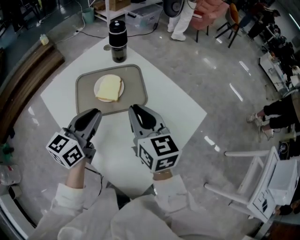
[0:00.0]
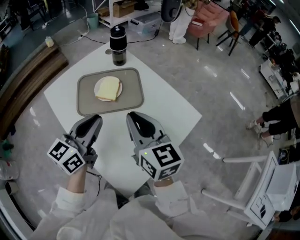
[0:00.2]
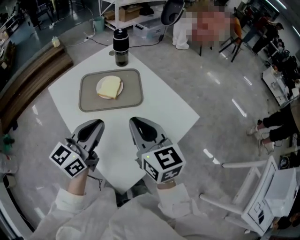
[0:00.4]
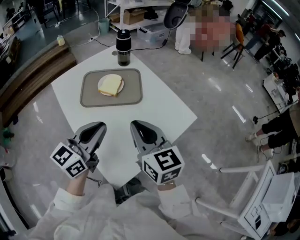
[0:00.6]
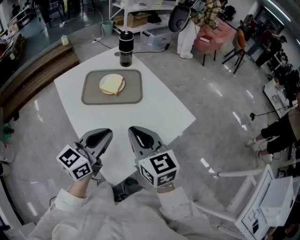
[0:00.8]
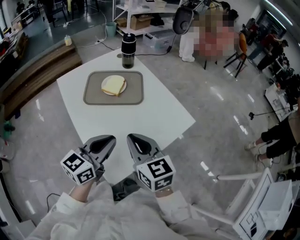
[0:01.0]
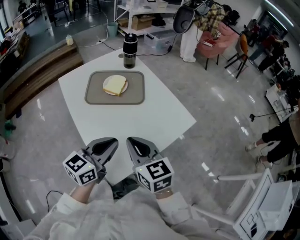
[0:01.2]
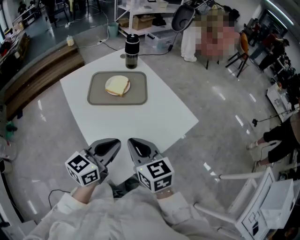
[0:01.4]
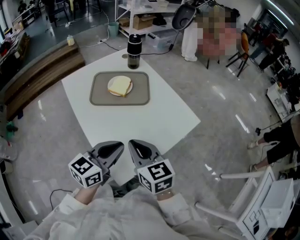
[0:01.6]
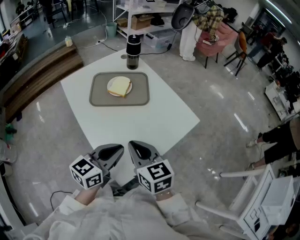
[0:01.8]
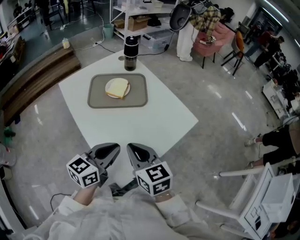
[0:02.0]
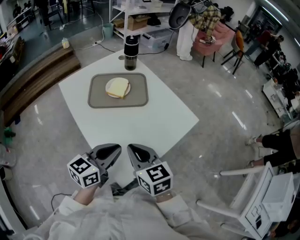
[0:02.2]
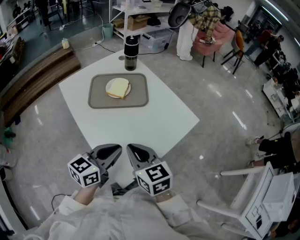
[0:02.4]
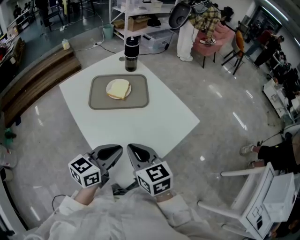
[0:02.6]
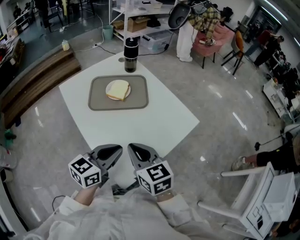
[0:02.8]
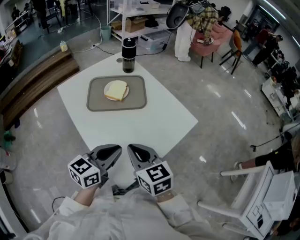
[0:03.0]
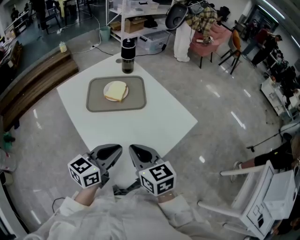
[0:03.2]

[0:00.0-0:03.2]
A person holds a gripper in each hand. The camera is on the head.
0.0 to 1.6 s: The right gripper travels backward by roughly 20 cm. Meanwhile the left gripper goes about 25 cm backward and to the right.
1.6 to 3.2 s: The grippers move only a little.

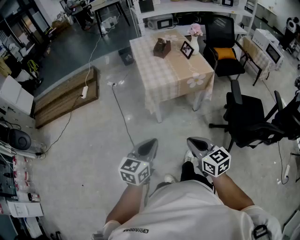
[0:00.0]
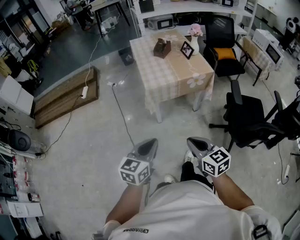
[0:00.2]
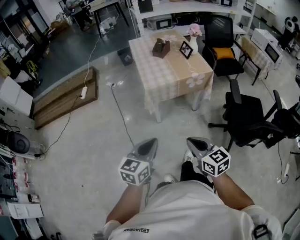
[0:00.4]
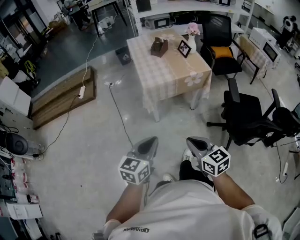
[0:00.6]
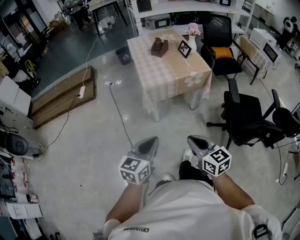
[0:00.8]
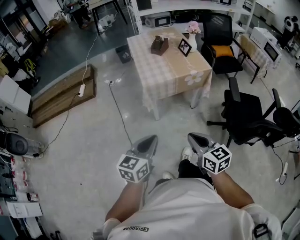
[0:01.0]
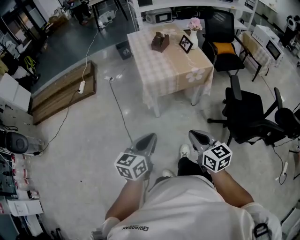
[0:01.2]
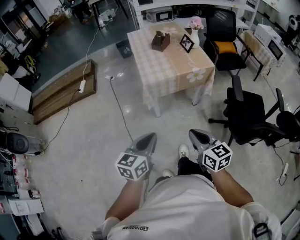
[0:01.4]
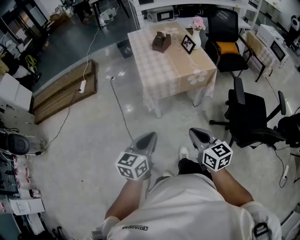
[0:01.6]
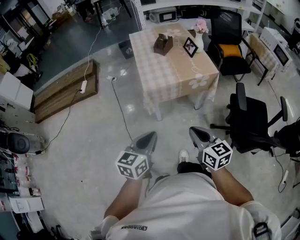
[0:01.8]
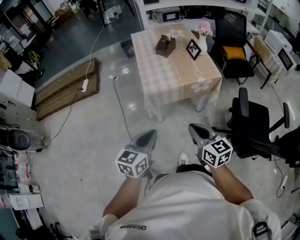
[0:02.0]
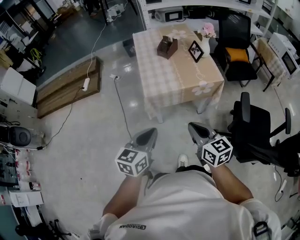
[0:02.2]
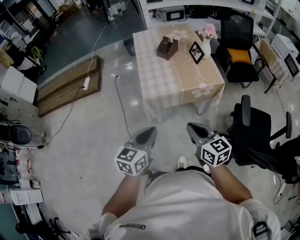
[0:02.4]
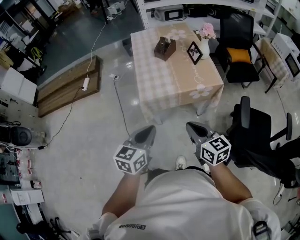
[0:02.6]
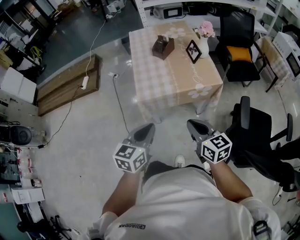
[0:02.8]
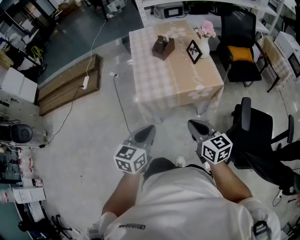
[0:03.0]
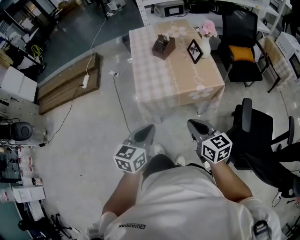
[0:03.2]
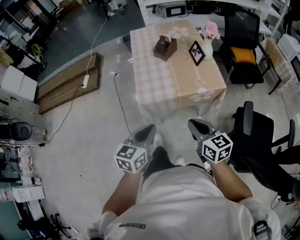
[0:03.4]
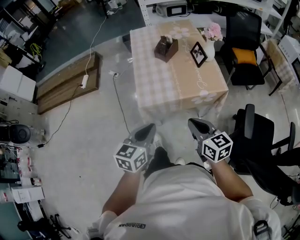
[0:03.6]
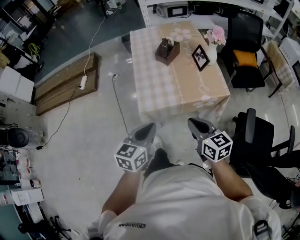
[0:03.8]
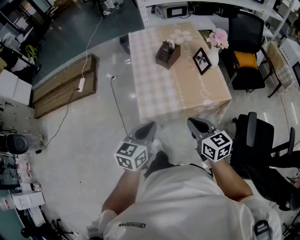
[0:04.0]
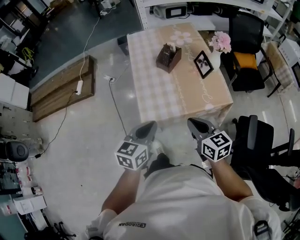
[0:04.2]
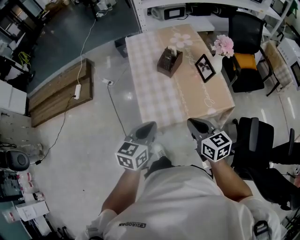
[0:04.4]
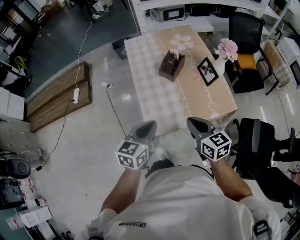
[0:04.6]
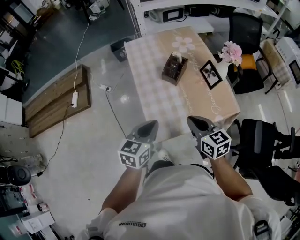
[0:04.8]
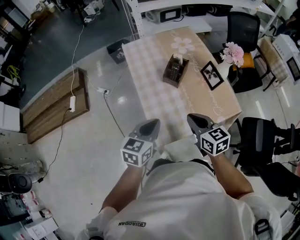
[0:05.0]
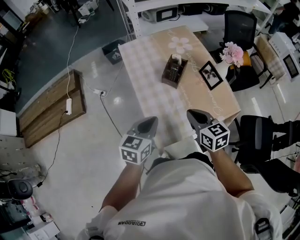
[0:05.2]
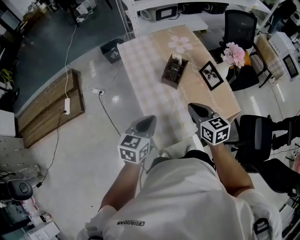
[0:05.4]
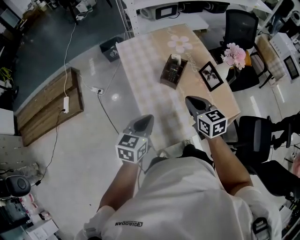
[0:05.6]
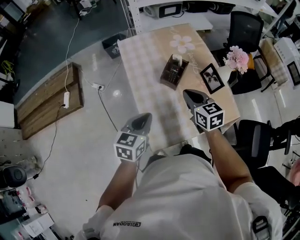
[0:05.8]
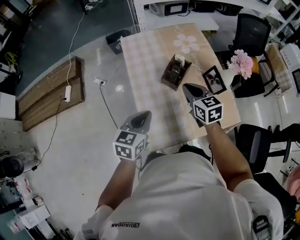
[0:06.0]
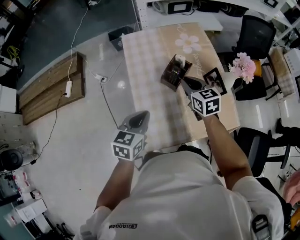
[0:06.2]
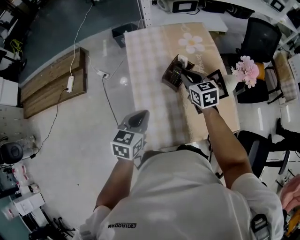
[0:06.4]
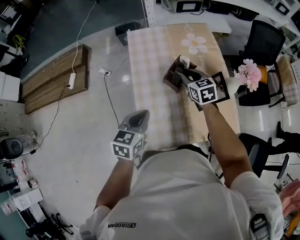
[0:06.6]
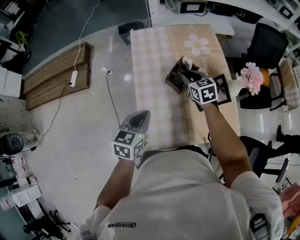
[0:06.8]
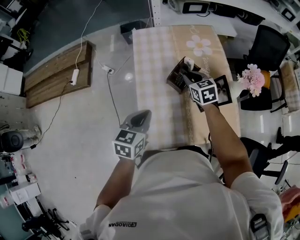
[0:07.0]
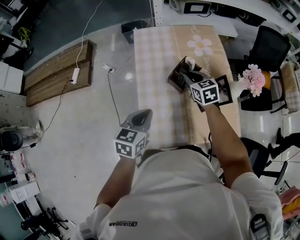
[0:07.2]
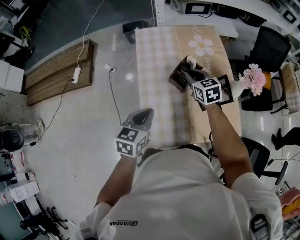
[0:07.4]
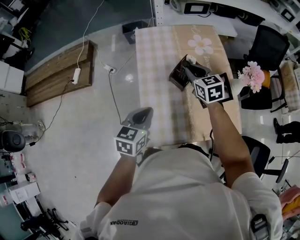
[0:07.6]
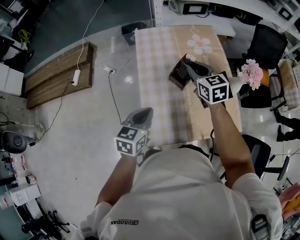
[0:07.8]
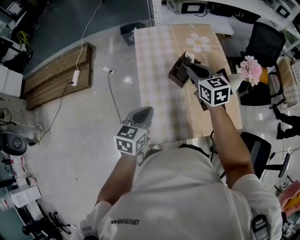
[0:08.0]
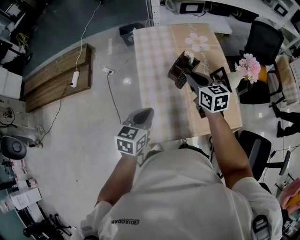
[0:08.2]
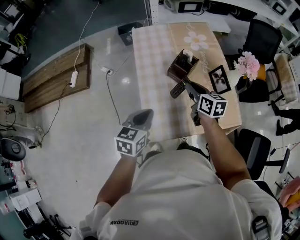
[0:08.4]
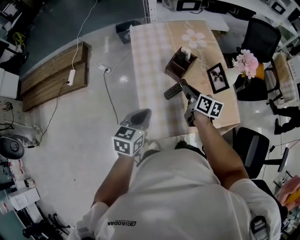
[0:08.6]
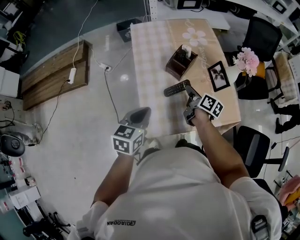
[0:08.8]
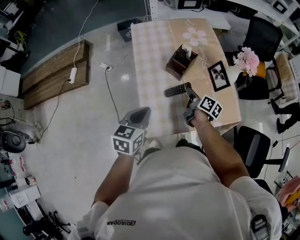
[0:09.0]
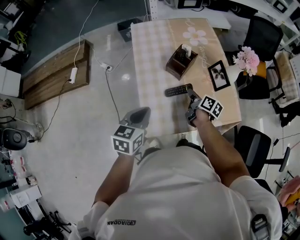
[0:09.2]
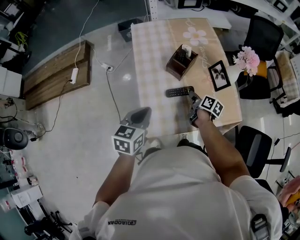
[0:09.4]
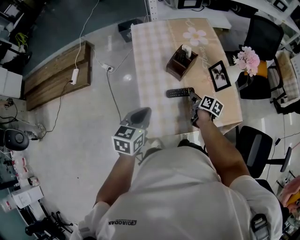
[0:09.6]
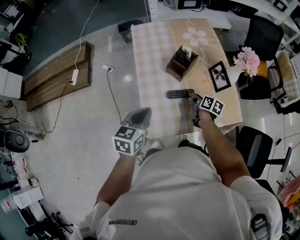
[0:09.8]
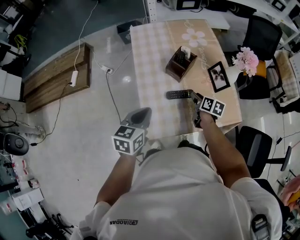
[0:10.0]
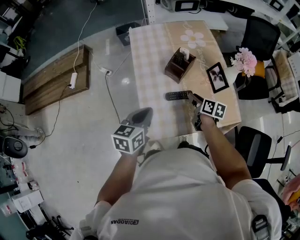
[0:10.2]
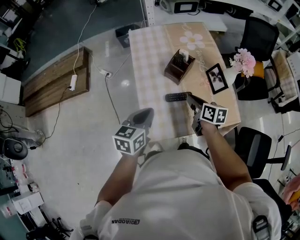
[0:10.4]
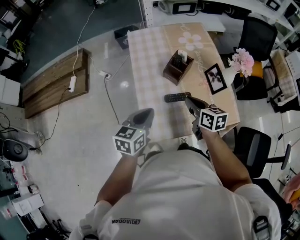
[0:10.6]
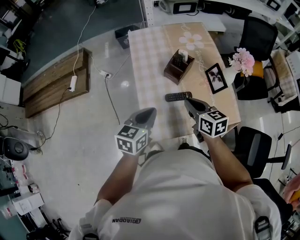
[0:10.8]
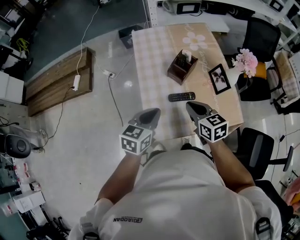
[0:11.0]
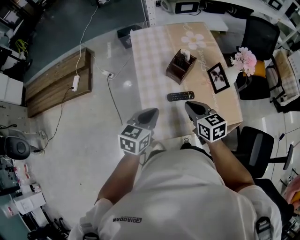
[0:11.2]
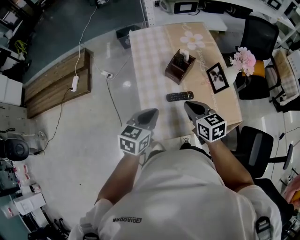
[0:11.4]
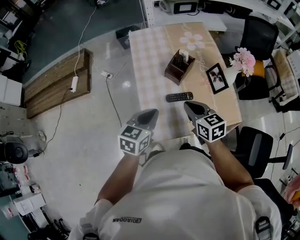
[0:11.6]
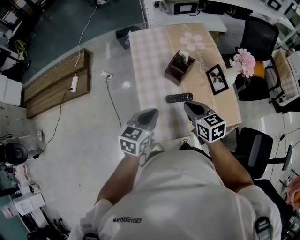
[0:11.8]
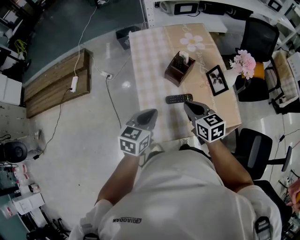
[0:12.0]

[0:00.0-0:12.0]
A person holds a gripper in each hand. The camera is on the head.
0.0 to 1.6 s: The two grippers go roughly 5 cm forward.
1.6 to 3.0 s: The right gripper is displaced forward by some 20 cm; the left gripper moves forward and to the right, approximately 20 cm.
3.0 to 4.4 s: The two grippers go about 20 cm forward.
4.4 to 6.0 s: The right gripper shifts approximately 30 cm forward. Meanwhile the left gripper heads forward, covering approximately 20 cm.
6.0 to 7.6 s: The right gripper is displaced forward by some 10 cm.
7.6 to 9.0 s: The right gripper heads downward and backward, covering about 20 cm, and rotates around the line of its fingers by approximately 70 degrees, clockwise from behind, while the left gripper travels backward by approximately 5 cm.
9.0 to 10.4 s: The right gripper shifts approximately 5 cm upward, and turns by some 30 degrees.
10.4 to 12.0 s: The right gripper shifts some 5 cm upward, and turns by roughly 30 degrees.

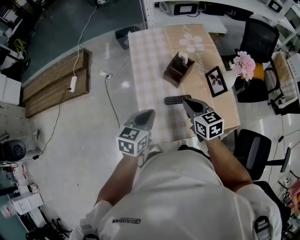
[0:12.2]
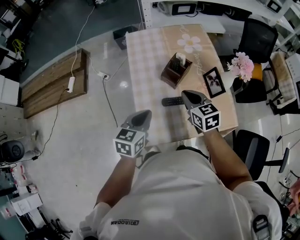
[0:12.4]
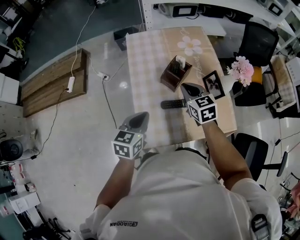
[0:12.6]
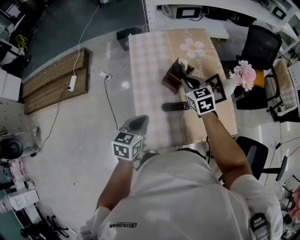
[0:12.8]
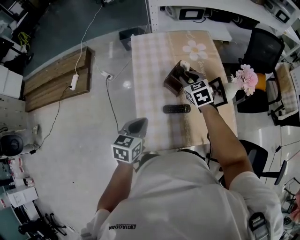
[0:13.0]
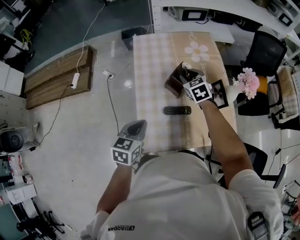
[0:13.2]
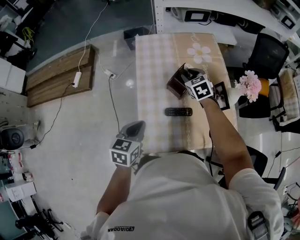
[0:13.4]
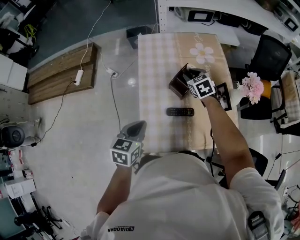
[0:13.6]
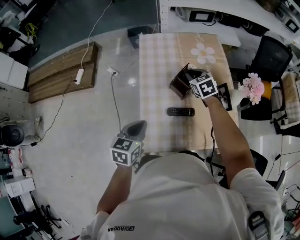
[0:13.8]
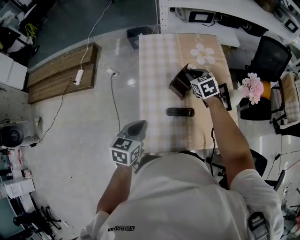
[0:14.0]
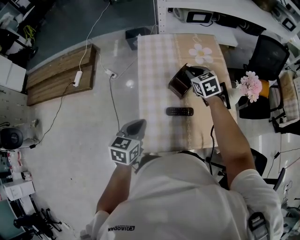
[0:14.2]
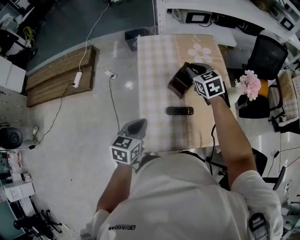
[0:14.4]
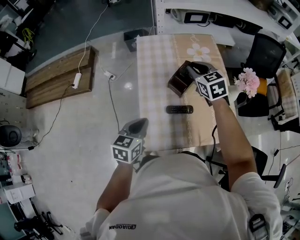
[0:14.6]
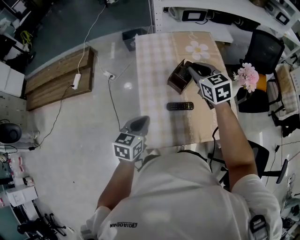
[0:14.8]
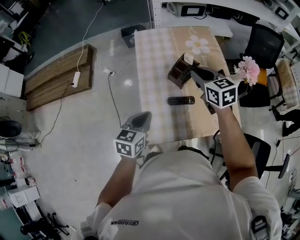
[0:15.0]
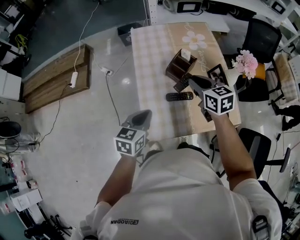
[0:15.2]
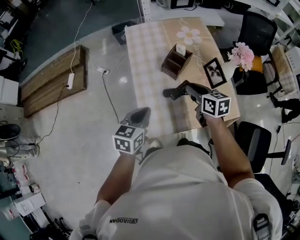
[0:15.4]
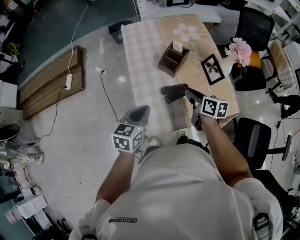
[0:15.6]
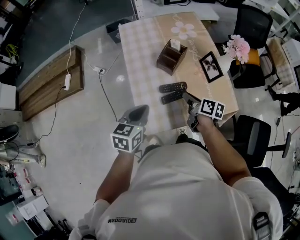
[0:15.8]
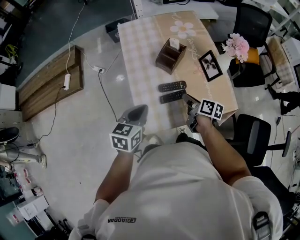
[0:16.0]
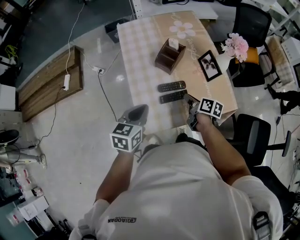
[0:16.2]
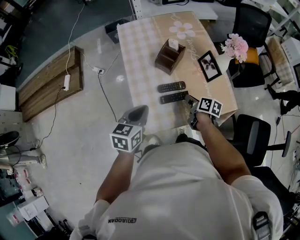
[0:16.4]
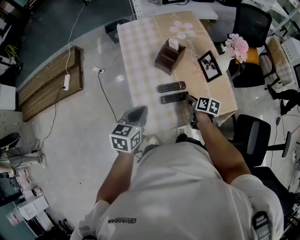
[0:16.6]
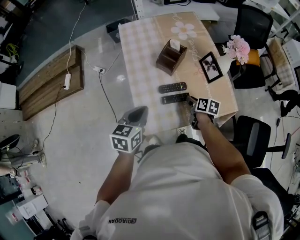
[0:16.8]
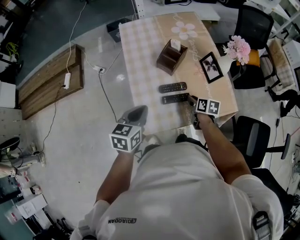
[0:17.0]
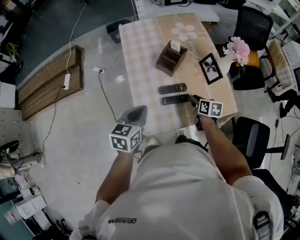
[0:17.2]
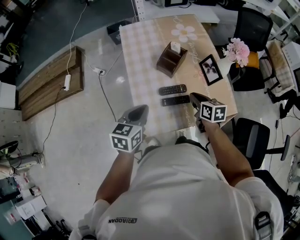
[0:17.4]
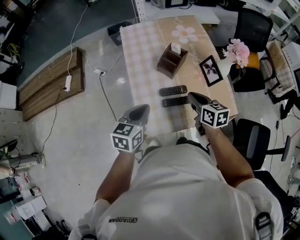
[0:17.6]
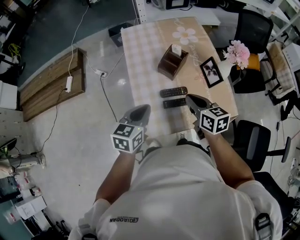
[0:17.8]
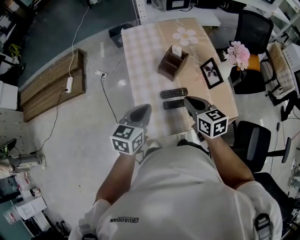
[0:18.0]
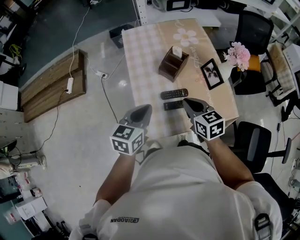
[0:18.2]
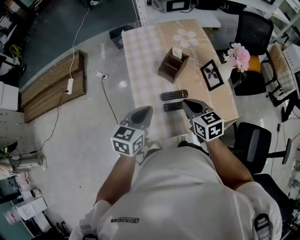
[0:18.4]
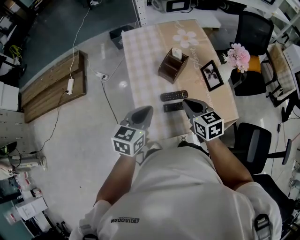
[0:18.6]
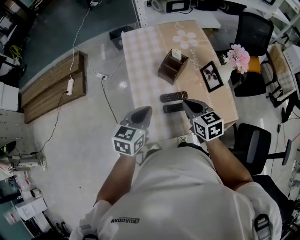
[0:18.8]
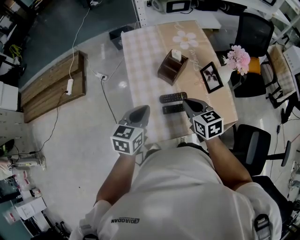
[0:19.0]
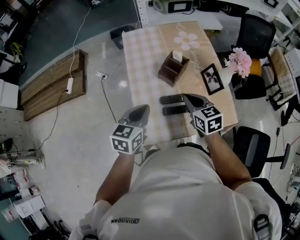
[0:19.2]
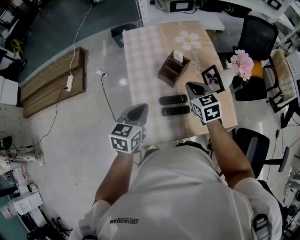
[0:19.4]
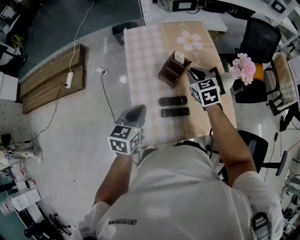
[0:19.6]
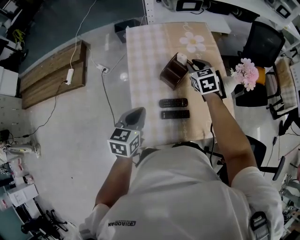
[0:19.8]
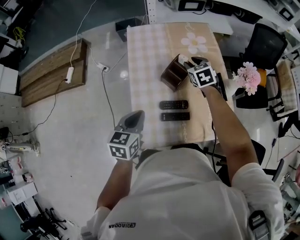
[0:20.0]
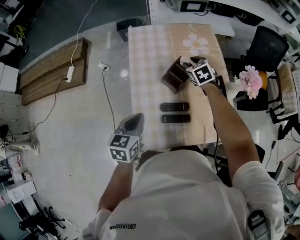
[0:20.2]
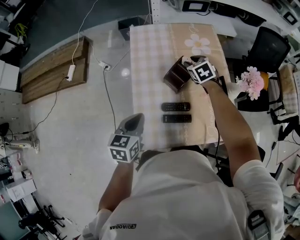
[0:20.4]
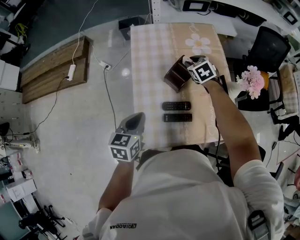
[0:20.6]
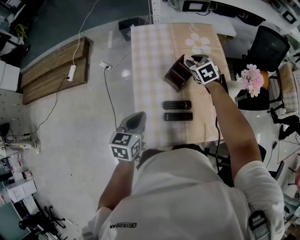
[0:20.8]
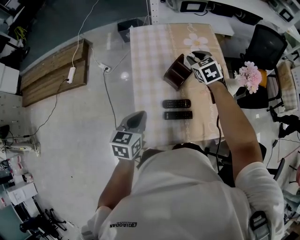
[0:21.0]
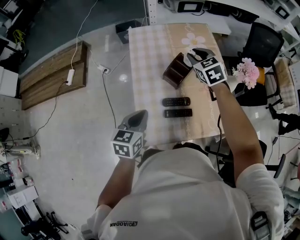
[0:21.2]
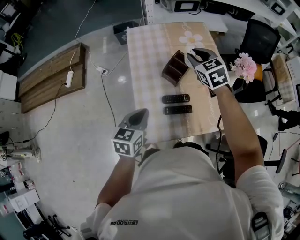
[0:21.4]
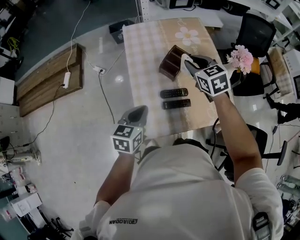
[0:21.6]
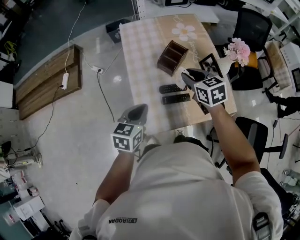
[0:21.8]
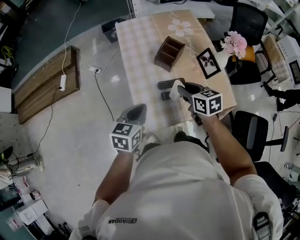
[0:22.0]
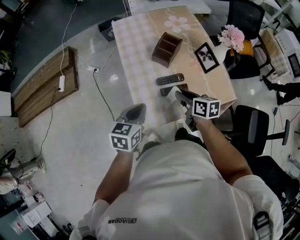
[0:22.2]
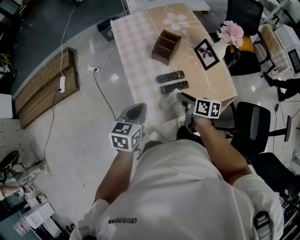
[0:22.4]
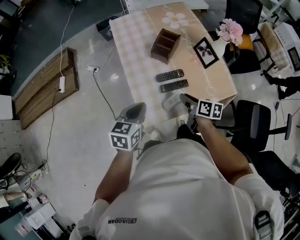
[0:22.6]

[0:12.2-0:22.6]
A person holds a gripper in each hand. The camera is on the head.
12.2 to 13.6 s: The right gripper moves forward, about 20 cm, turns by roughly 20 degrees, and opens.
13.6 to 15.2 s: The right gripper moves backward and upward, some 15 cm, and swivels about 30 degrees.
15.2 to 16.6 s: The right gripper shifts approximately 20 cm downward, and twists some 50 degrees clockwise, seen from behind.
16.6 to 18.2 s: The left gripper moves approximately 5 cm, while the right gripper travels upward and to the left by approximately 20 cm, twists about 40 degrees counterclockwise, seen from behind, and closes its fingers.
18.2 to 19.6 s: The right gripper heads forward, covering some 20 cm.
19.6 to 21.2 s: The right gripper travels forward and upward by about 10 cm.
21.2 to 22.6 s: The left gripper goes approximately 10 cm backward, while the right gripper goes about 35 cm backward and downward, and rolls clockwise, seen from behind, by about 70 degrees.
